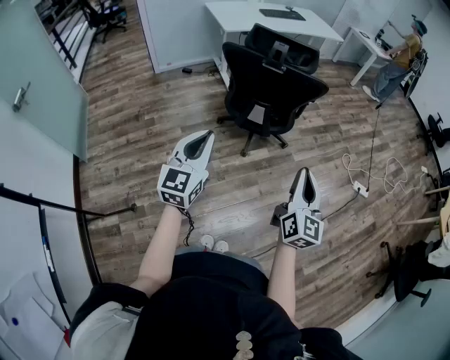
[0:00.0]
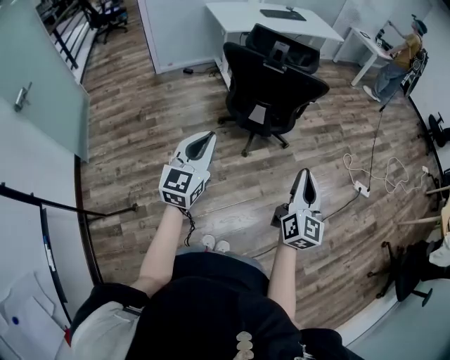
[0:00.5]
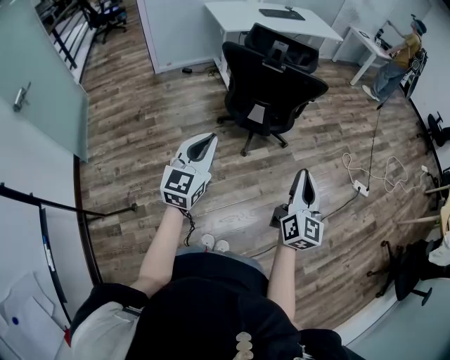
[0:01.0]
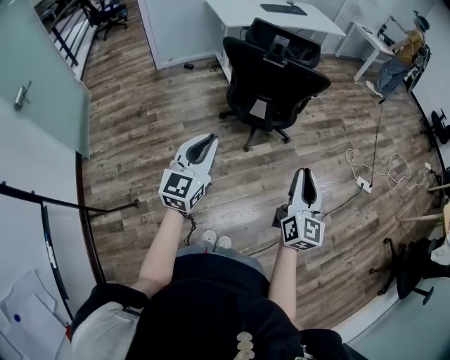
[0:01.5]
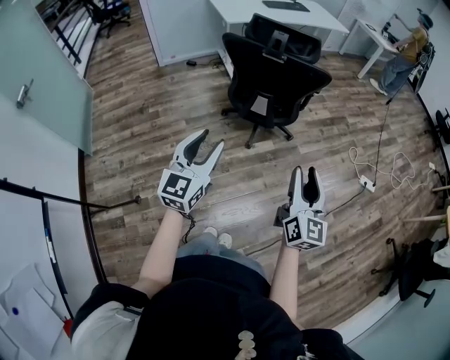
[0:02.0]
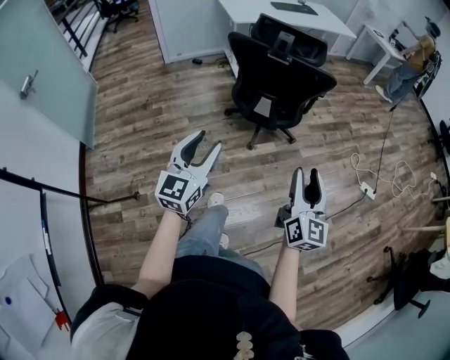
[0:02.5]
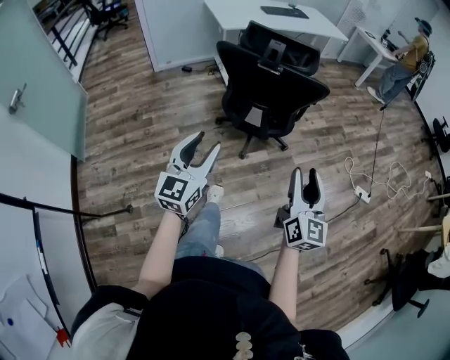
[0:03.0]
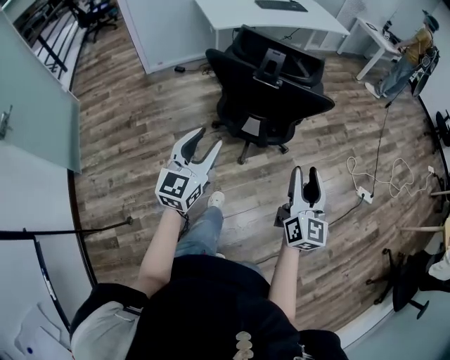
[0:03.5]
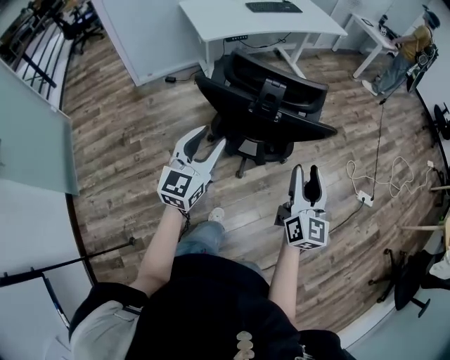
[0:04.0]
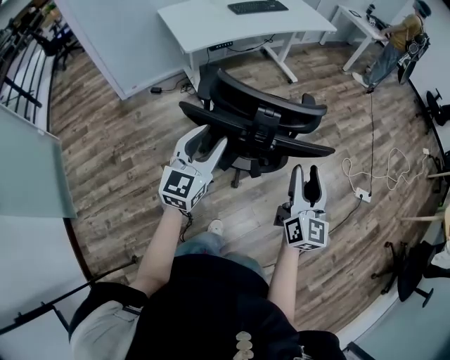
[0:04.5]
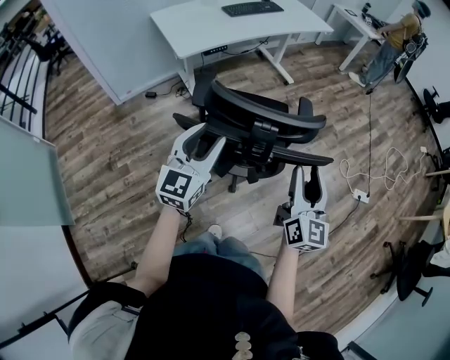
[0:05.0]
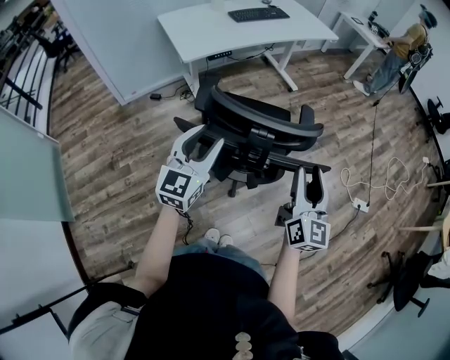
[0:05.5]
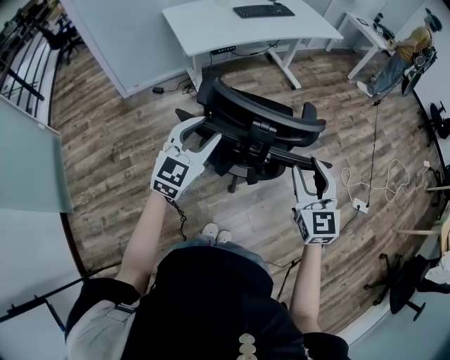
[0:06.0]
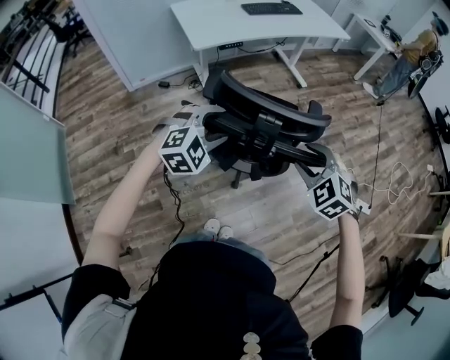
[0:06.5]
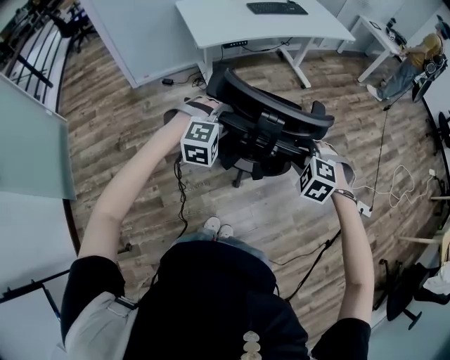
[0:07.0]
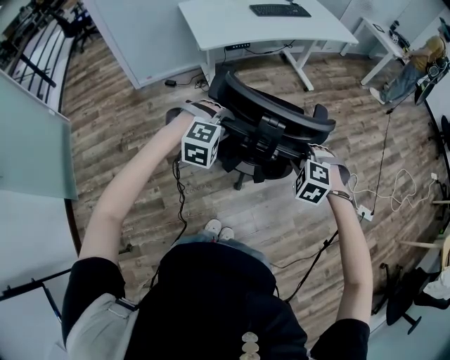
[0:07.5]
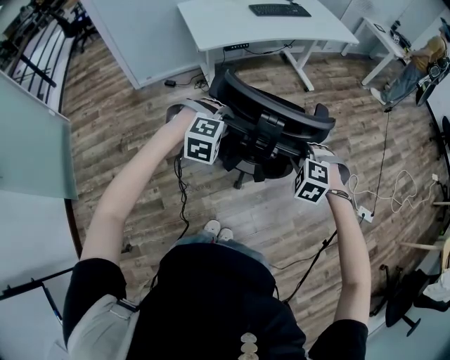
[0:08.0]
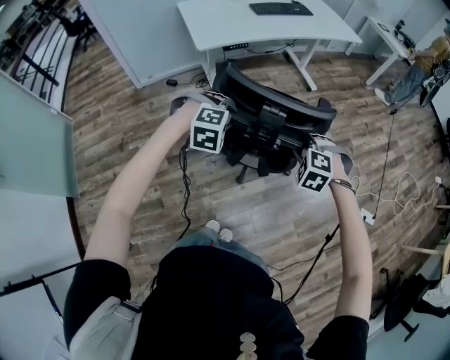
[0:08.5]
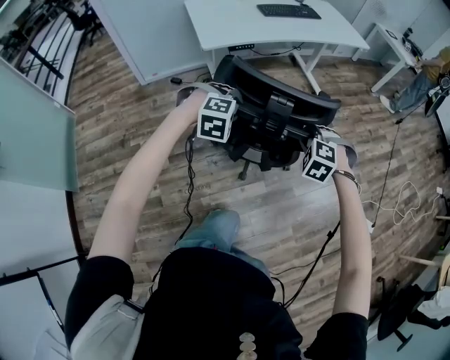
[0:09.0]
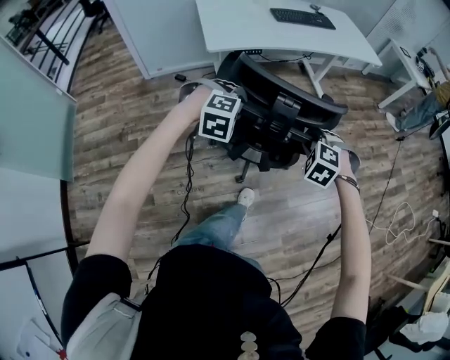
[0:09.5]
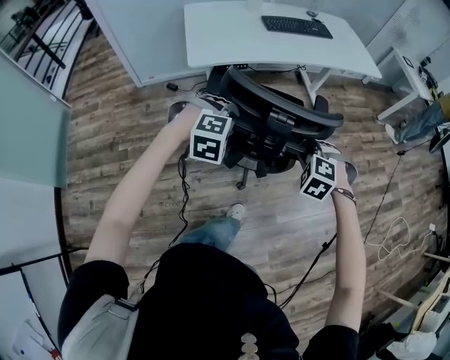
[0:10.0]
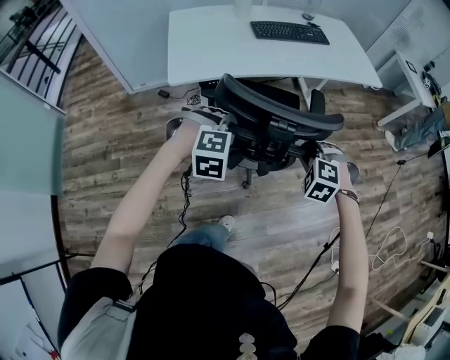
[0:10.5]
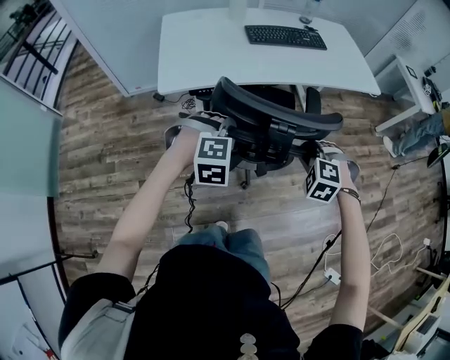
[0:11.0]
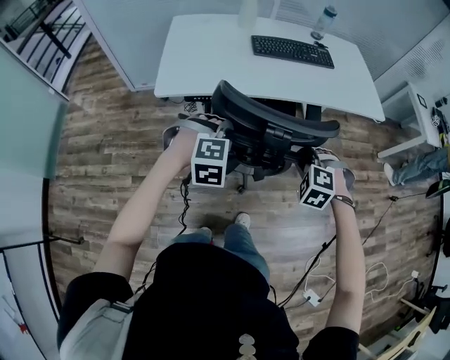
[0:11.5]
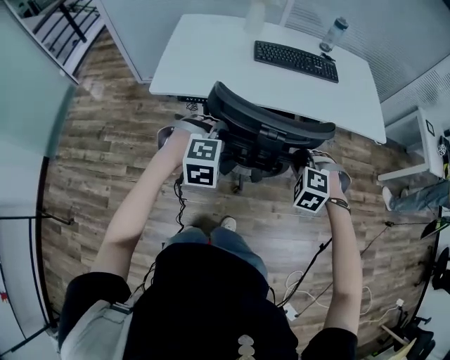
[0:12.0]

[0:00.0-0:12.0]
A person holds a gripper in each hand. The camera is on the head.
0:00.0 to 0:02.0: The left gripper opens its fingers; the right gripper opens.
0:02.0 to 0:04.0: Both grippers move forward, some 35 cm.
0:04.0 to 0:06.0: The two grippers go about 15 cm forward. The right gripper changes its angle by some 30 degrees.
0:06.0 to 0:08.0: Both grippers move downward, roughly 15 cm. The left gripper points its fingers some 50 degrees further downward. The right gripper tilts its fingers roughly 50 degrees downward, and closes its fingers.
0:08.0 to 0:10.0: Both grippers travel together forward, about 25 cm.
0:10.0 to 0:12.0: Both grippers move forward and to the right, about 30 cm. The left gripper swivels approximately 20 degrees, while the right gripper swivels some 20 degrees.

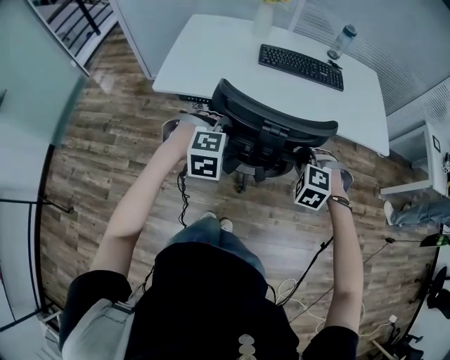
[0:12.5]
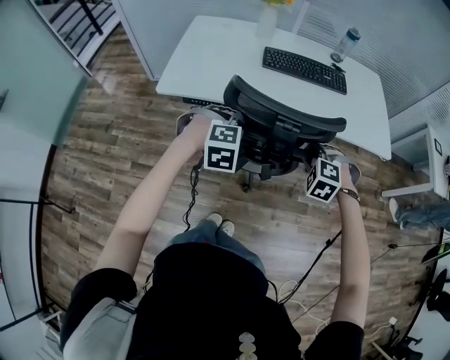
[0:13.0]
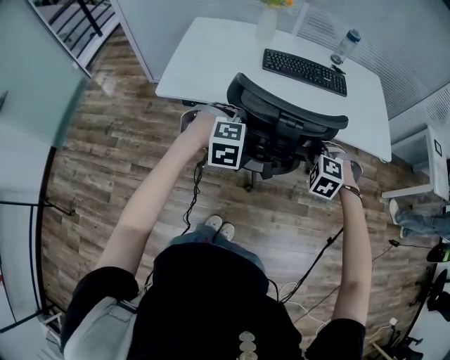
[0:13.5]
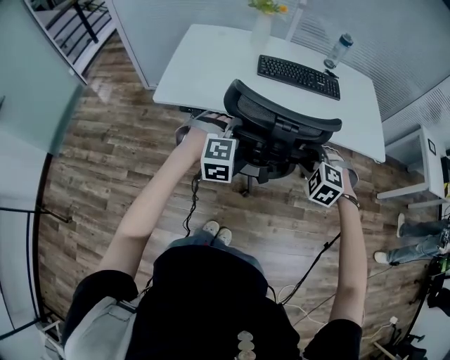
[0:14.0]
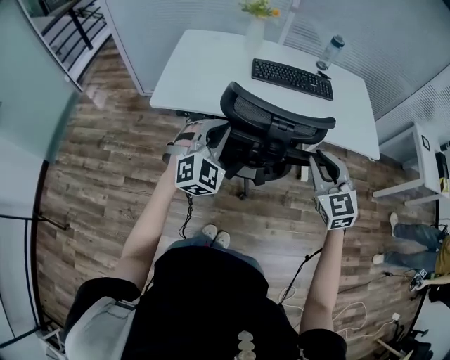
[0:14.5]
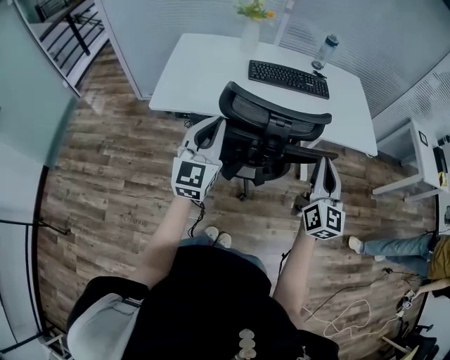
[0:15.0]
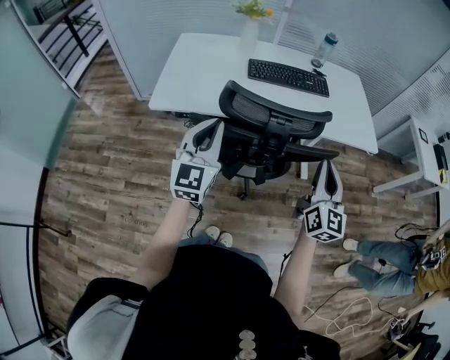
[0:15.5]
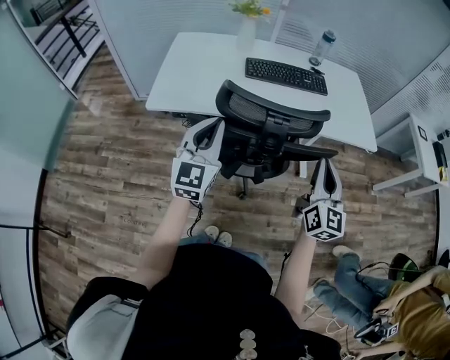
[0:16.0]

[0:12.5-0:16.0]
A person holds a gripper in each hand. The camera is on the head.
0:12.5 to 0:14.5: Both grippers travel together upward, some 10 cm. The right gripper tilts its fingers some 40 degrees upward, and opens and closes again; the left gripper tilts its fingers roughly 40 degrees upward, and closes.
0:14.5 to 0:16.0: The right gripper moves approximately 5 cm, and swivels some 40 degrees. Meanwhile the left gripper turns by approximately 40 degrees.

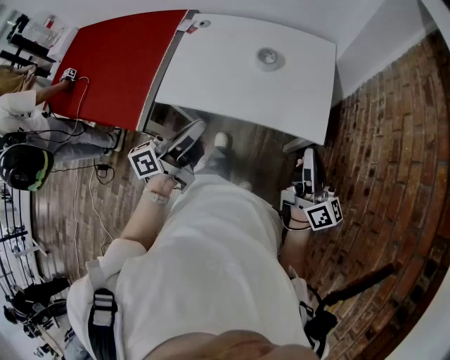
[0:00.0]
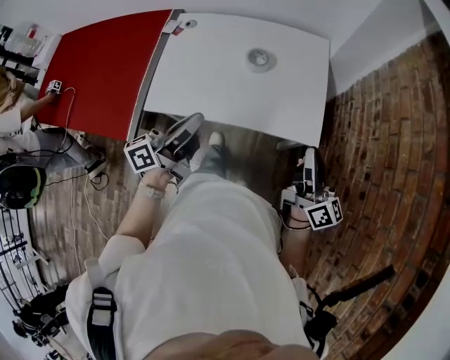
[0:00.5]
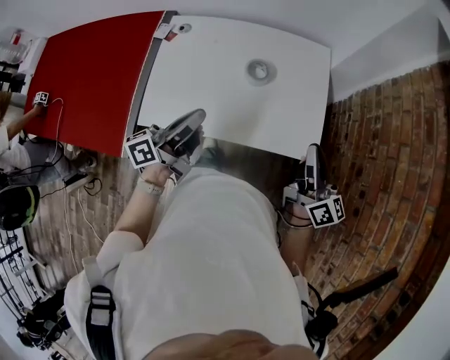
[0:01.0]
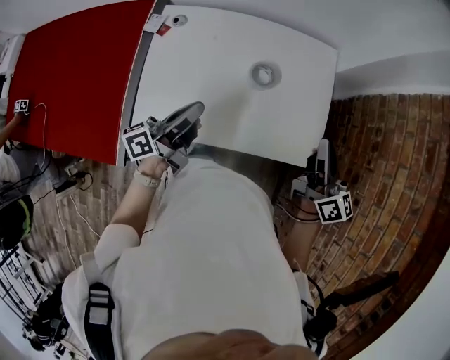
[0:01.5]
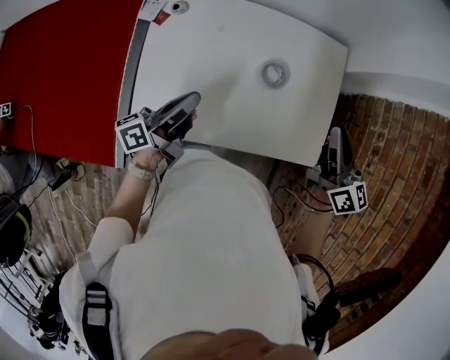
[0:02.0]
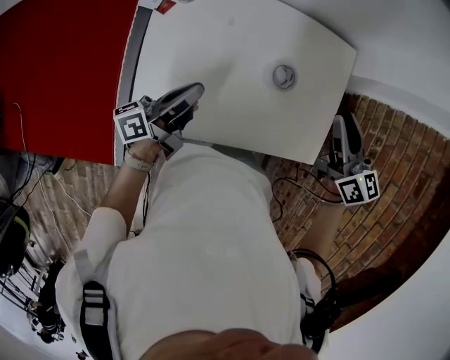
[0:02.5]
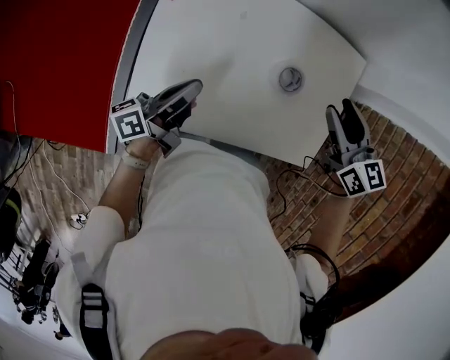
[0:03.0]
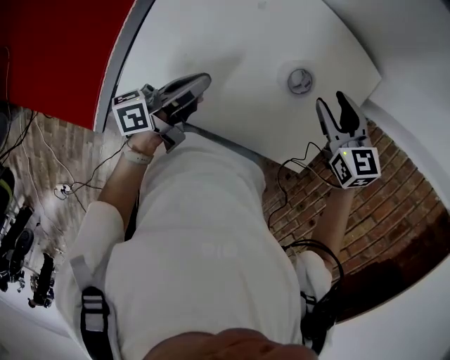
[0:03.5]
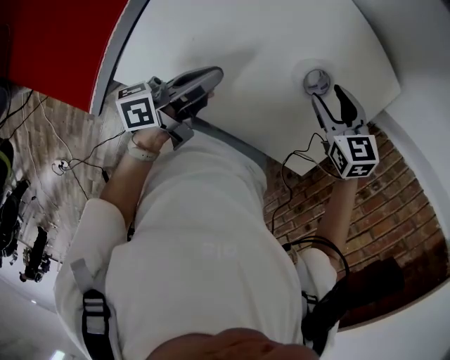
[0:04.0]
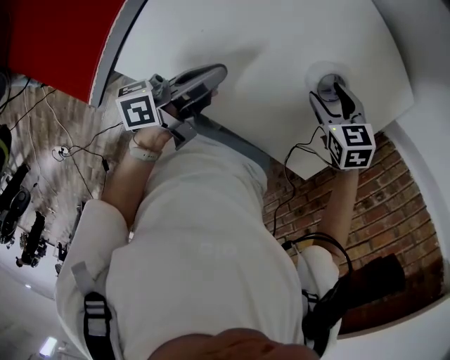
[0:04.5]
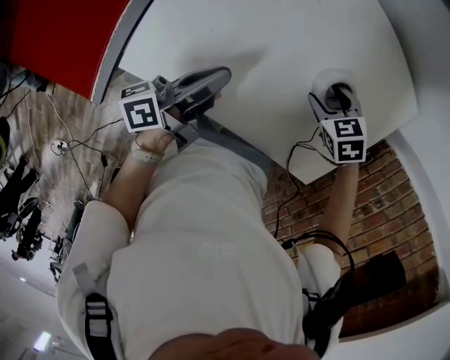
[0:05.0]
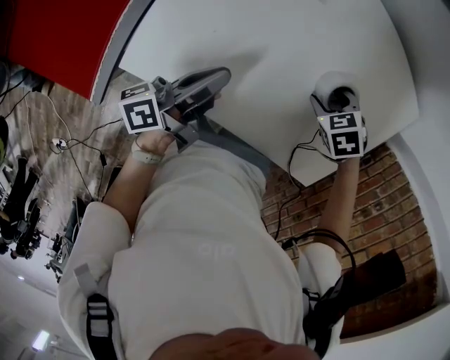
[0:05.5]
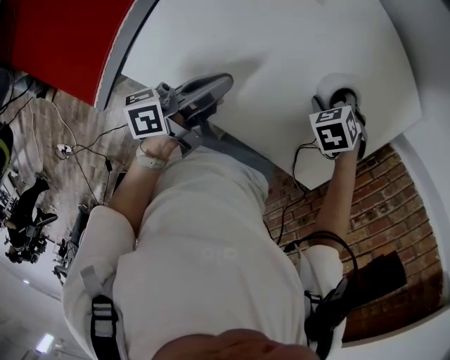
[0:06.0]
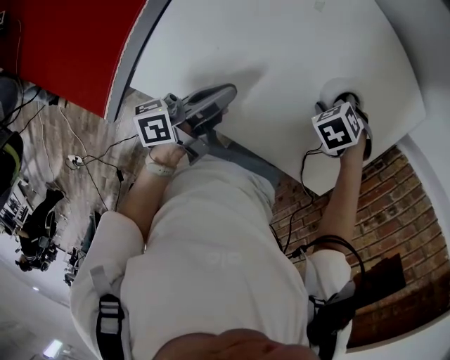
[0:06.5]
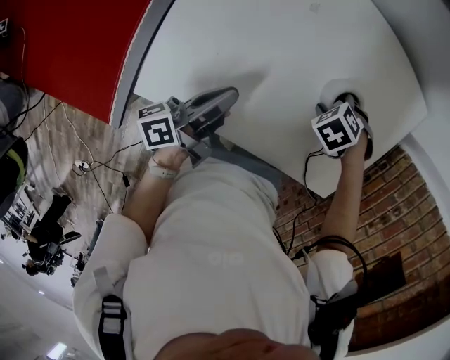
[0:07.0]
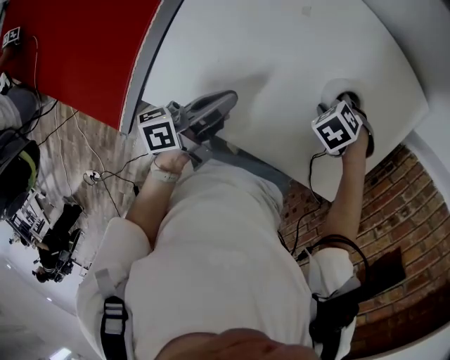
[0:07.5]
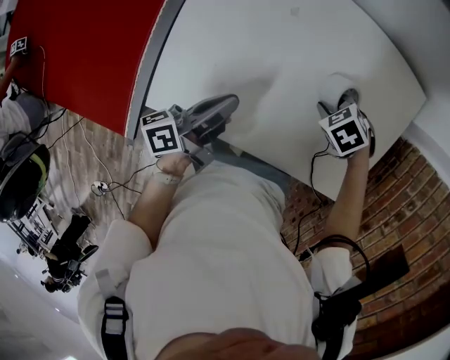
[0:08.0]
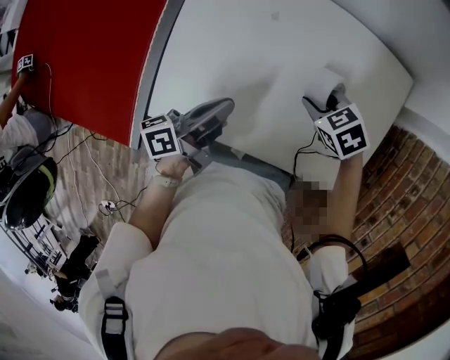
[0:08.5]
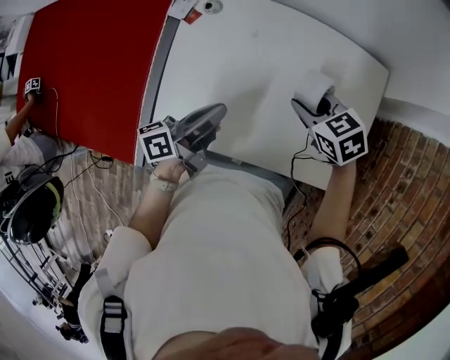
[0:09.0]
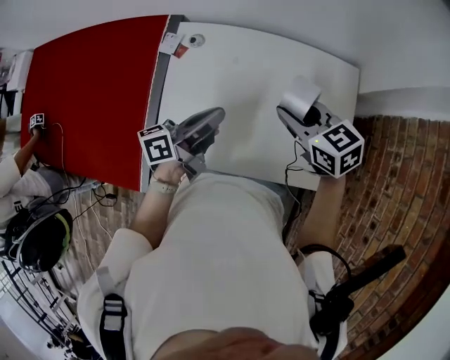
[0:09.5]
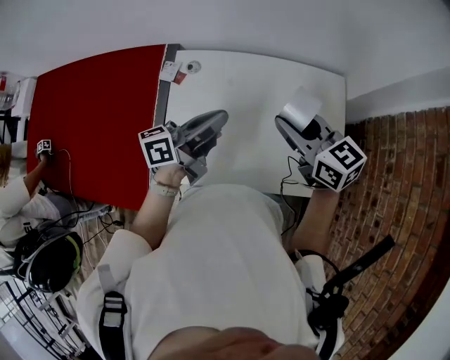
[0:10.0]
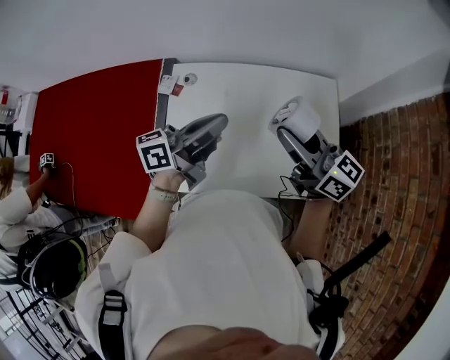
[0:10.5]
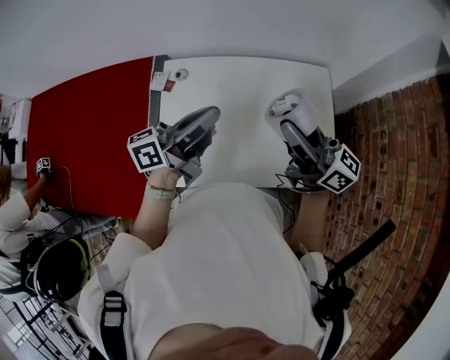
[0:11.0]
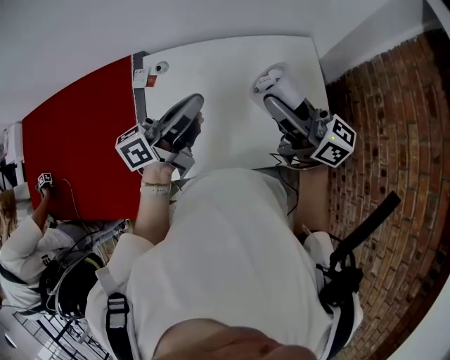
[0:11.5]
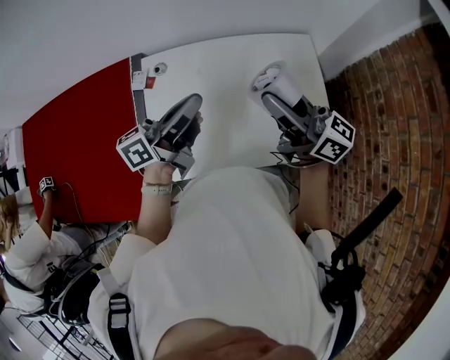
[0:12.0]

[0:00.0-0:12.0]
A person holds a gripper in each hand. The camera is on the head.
0:00.0 to 0:02.0: The grippers both shift forward and to the left by approximately 35 cm. The right gripper rotates some 30 degrees.
0:02.0 to 0:04.0: The right gripper shifts by some 20 cm, points its fingers about 50 degrees further downward, and opens.
0:04.0 to 0:06.0: The right gripper goes about 15 cm downward, and points its fingers about 30 degrees further downward.
0:06.0 to 0:08.0: The right gripper closes.
0:08.0 to 0:10.0: The right gripper travels upward by roughly 35 cm, and tilts its fingers about 60 degrees upward. The left gripper travels upward by some 20 cm, and changes its angle by some 30 degrees.
0:10.0 to 0:12.0: The right gripper shifts about 5 cm upward, and tilts its fingers roughly 30 degrees upward.
